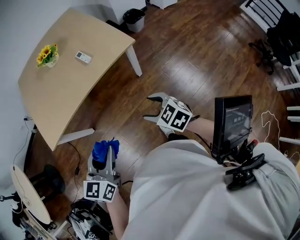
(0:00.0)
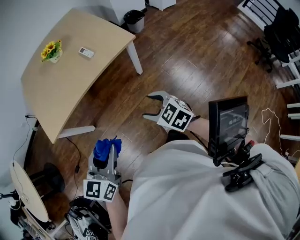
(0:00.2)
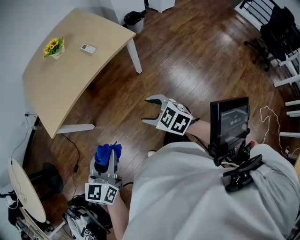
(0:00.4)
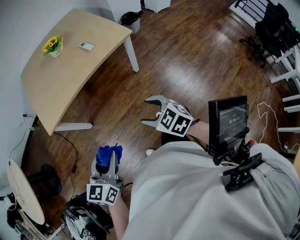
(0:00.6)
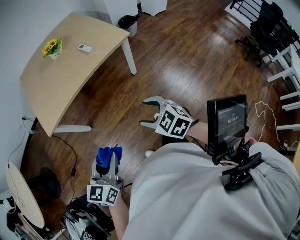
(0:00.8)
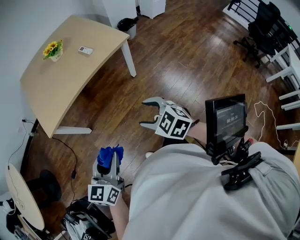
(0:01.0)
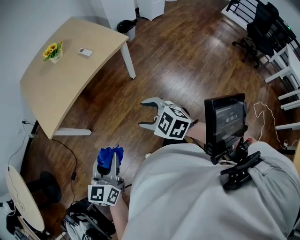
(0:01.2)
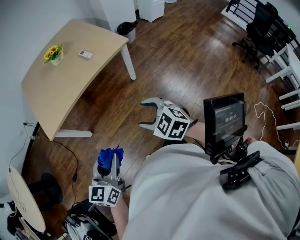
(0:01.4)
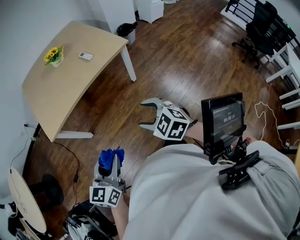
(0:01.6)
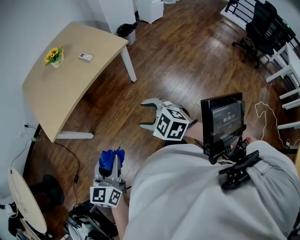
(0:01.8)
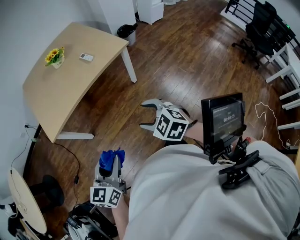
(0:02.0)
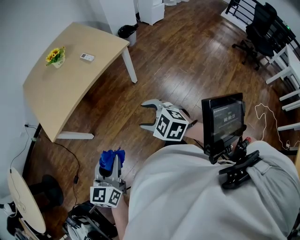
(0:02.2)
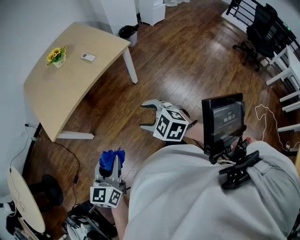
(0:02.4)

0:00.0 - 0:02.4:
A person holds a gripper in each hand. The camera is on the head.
0:00.0 - 0:01.2: The left gripper travels backward and to the left by roughly 20 cm, while the right gripper travels backward, to the left and upward by about 20 cm.
0:01.2 - 0:02.4: Both grippers stay about where they are.

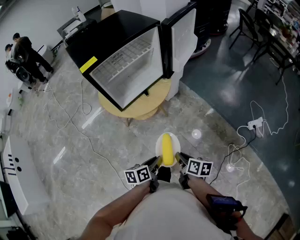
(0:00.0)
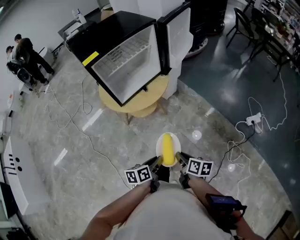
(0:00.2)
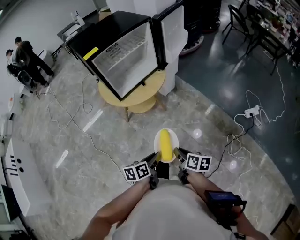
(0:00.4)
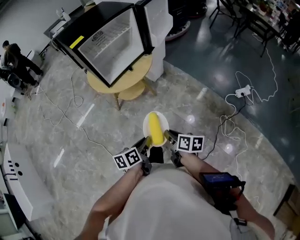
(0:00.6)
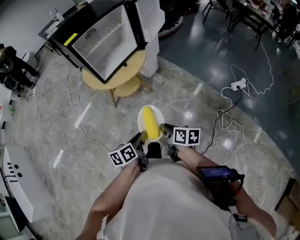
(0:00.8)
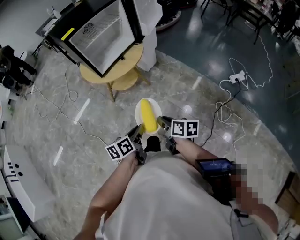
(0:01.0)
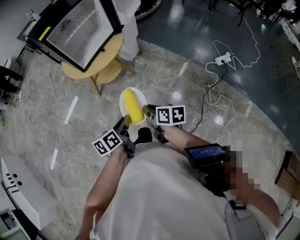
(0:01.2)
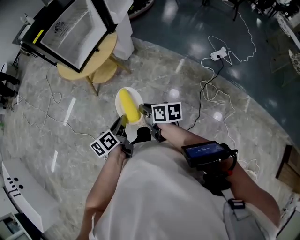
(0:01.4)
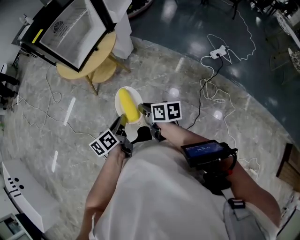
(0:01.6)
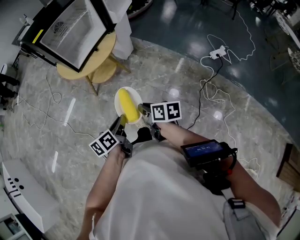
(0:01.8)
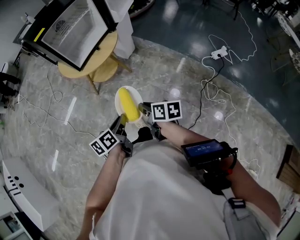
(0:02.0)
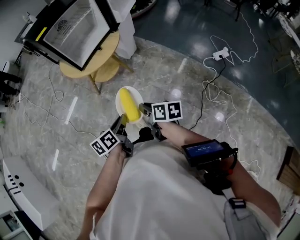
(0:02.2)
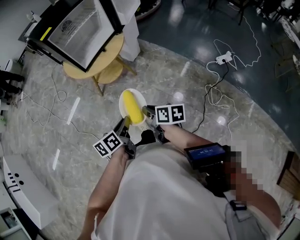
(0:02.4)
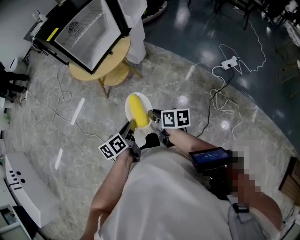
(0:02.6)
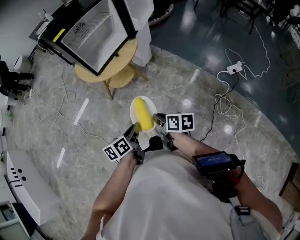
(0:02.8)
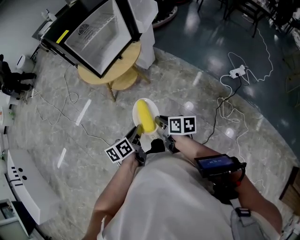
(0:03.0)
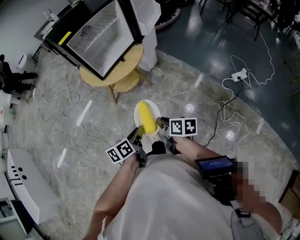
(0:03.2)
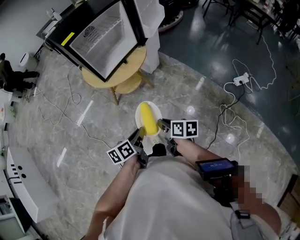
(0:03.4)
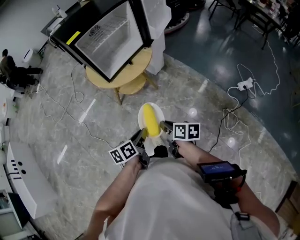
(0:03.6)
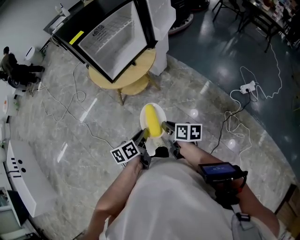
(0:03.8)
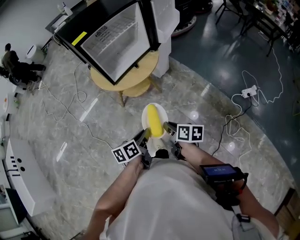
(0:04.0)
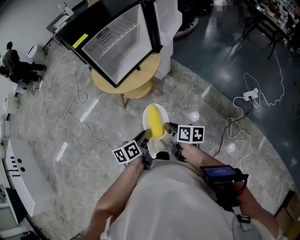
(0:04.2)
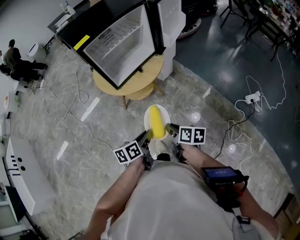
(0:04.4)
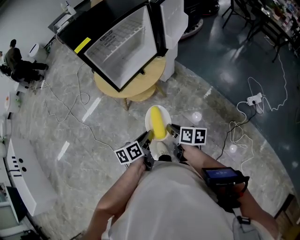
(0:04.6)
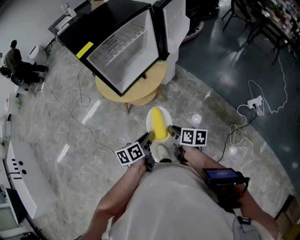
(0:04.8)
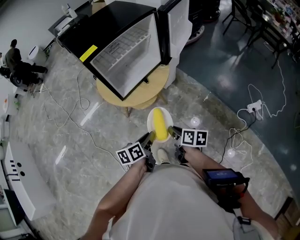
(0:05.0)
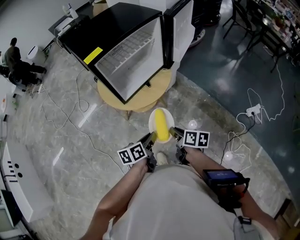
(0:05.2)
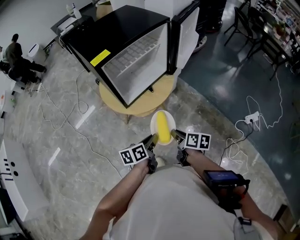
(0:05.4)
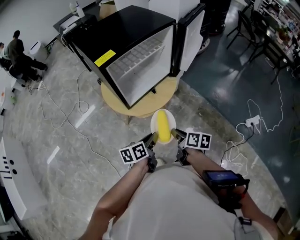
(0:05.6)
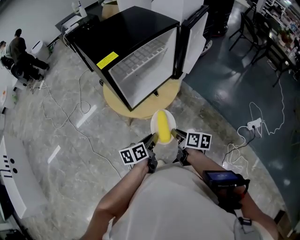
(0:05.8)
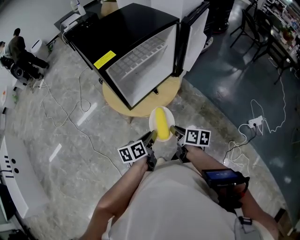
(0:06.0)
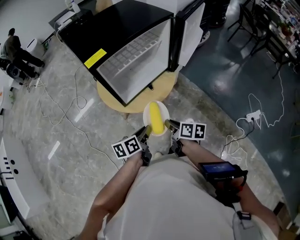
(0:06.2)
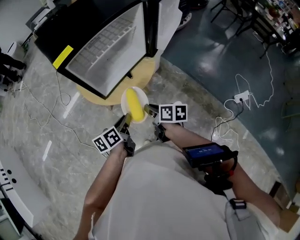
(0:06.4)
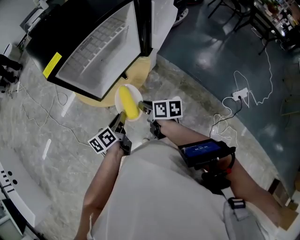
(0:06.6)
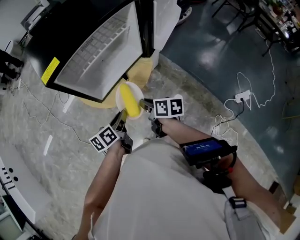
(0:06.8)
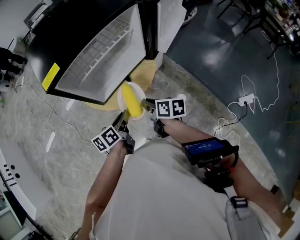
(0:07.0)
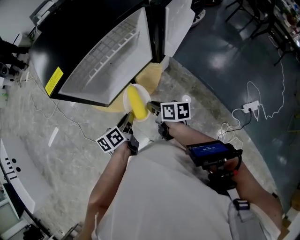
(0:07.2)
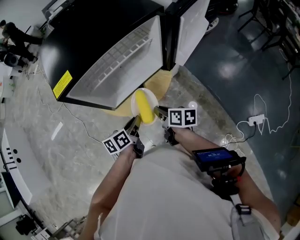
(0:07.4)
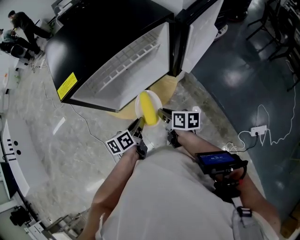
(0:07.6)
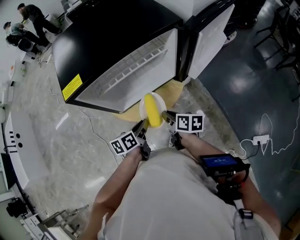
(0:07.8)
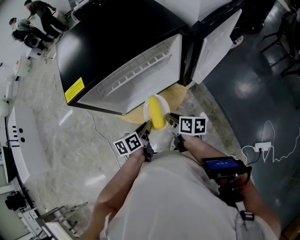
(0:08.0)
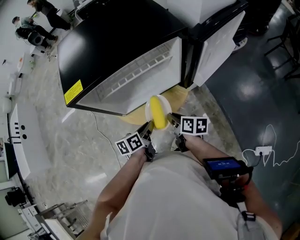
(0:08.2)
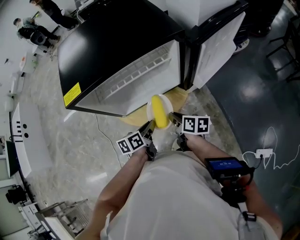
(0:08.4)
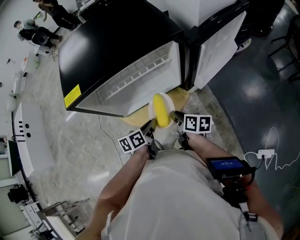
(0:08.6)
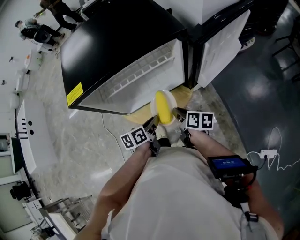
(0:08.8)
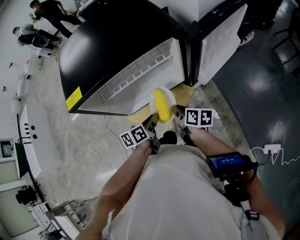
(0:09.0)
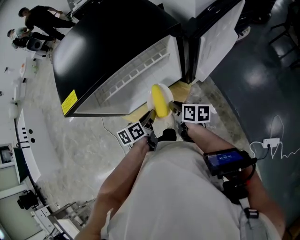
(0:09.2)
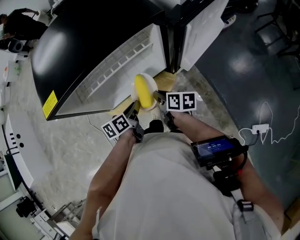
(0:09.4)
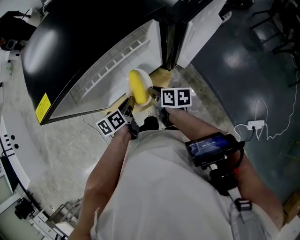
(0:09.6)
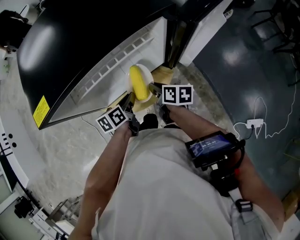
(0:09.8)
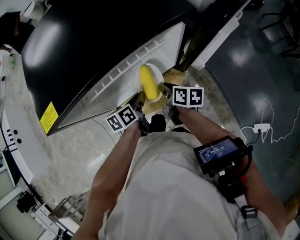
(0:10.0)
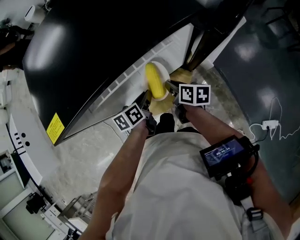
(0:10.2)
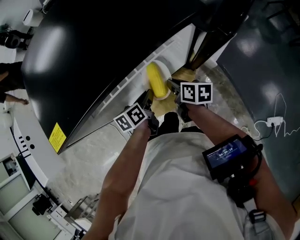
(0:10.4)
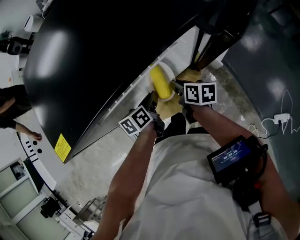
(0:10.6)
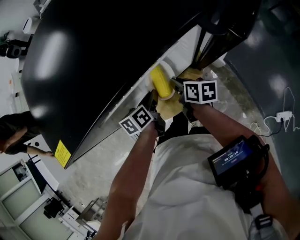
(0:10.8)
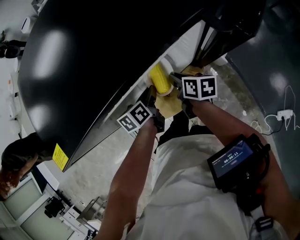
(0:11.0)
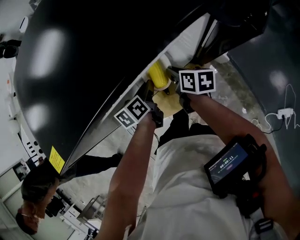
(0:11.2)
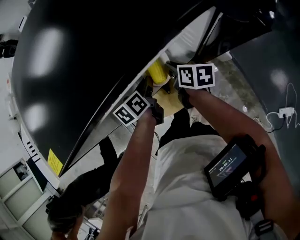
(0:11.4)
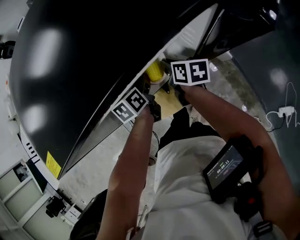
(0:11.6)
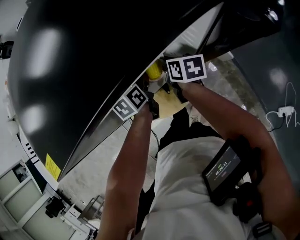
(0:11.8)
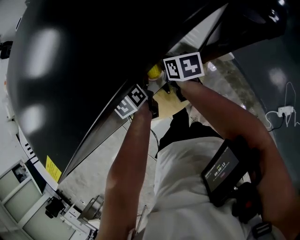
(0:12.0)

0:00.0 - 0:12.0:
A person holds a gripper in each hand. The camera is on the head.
0:00.0 - 0:01.6: The grippers both shift backward by approximately 15 cm.
0:01.6 - 0:03.0: The grippers make only small movements.
0:03.0 - 0:04.4: Both grippers travel together forward, some 15 cm.
0:04.4 - 0:06.0: Both grippers travel together forward, some 15 cm.
0:06.0 - 0:07.6: Both grippers travel together forward, about 15 cm.
0:07.6 - 0:09.0: The two grippers go roughly 5 cm forward.
0:09.0 - 0:10.4: The grippers both shift forward by approximately 10 cm.
0:10.4 - 0:12.0: Both grippers move forward, roughly 10 cm.

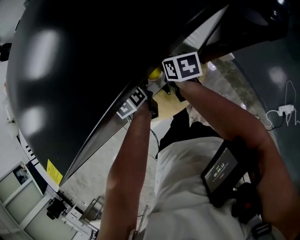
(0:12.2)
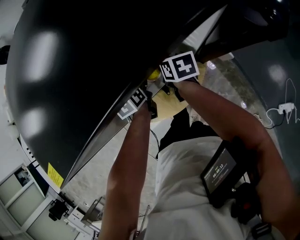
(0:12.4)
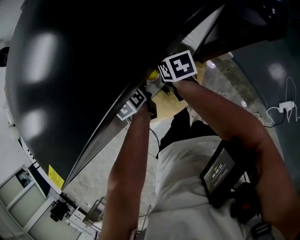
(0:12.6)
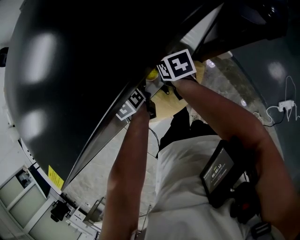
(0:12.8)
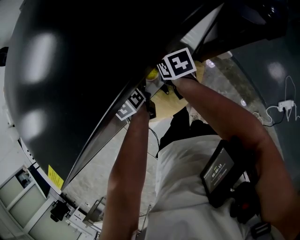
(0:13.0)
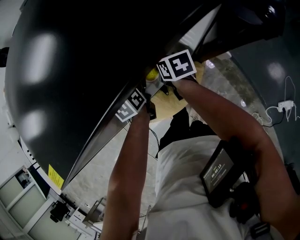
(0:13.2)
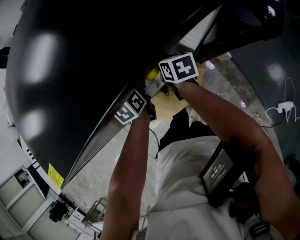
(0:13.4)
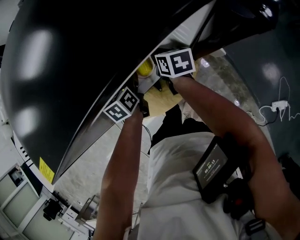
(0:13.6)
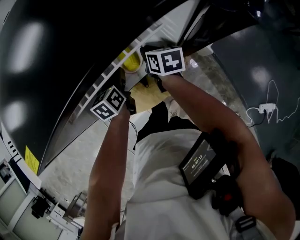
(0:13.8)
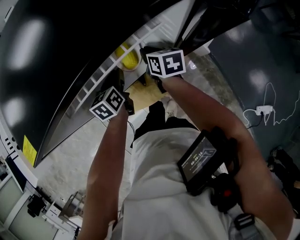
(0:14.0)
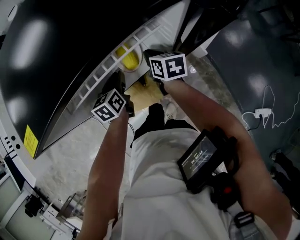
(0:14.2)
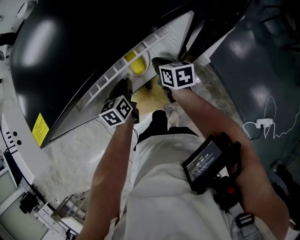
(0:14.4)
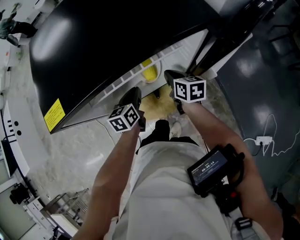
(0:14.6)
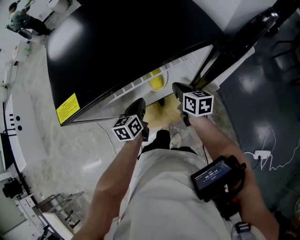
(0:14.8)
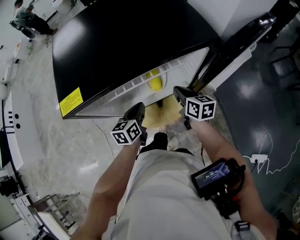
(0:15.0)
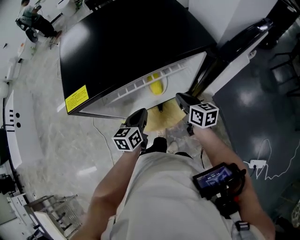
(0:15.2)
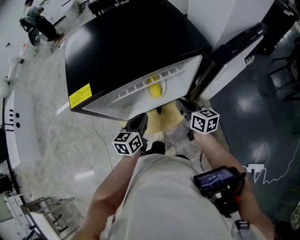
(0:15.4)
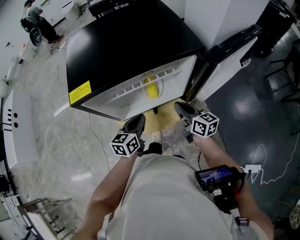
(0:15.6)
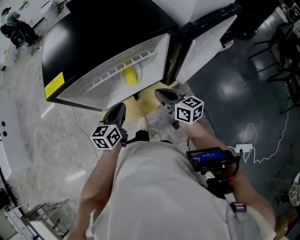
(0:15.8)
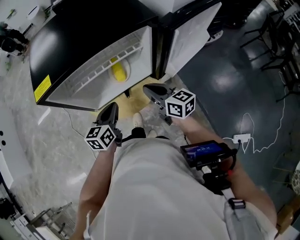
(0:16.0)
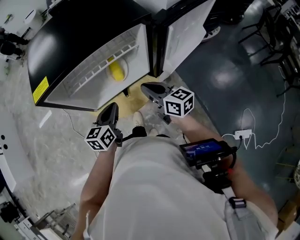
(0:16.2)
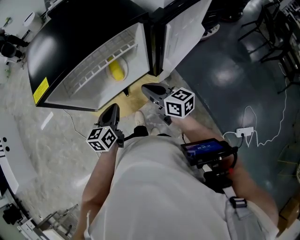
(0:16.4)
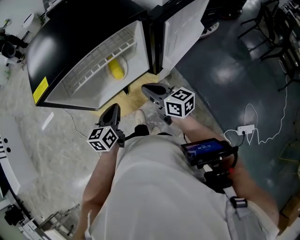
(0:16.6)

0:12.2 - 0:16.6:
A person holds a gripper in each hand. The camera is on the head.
0:12.2 - 0:13.6: There are only small adjustments of the grippers.
0:13.6 - 0:15.2: The right gripper shifts roughly 15 cm upward and backward, and rotates about 20 degrees, while the left gripper goes approximately 15 cm backward and upward.
0:15.2 - 0:16.6: The left gripper shifts some 5 cm backward; the right gripper is displaced backward and upward by roughly 10 cm.

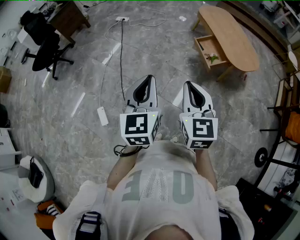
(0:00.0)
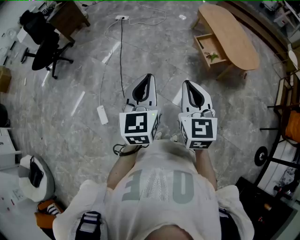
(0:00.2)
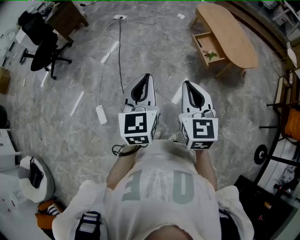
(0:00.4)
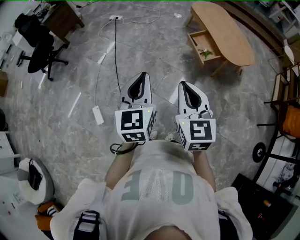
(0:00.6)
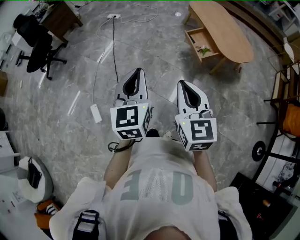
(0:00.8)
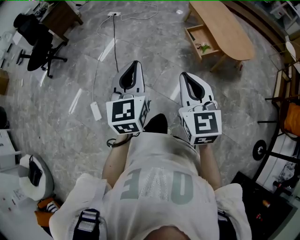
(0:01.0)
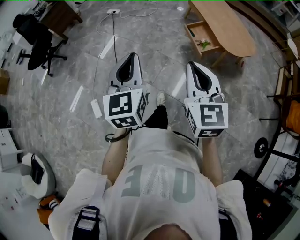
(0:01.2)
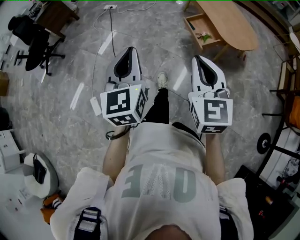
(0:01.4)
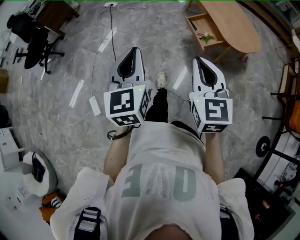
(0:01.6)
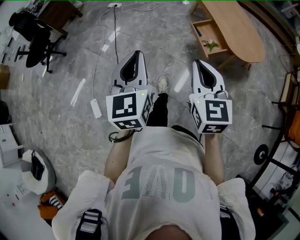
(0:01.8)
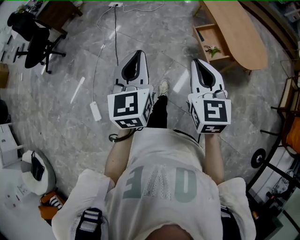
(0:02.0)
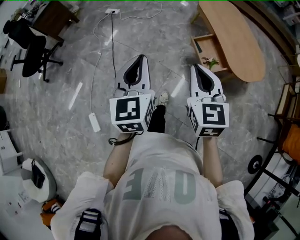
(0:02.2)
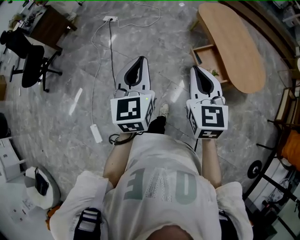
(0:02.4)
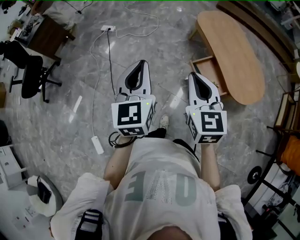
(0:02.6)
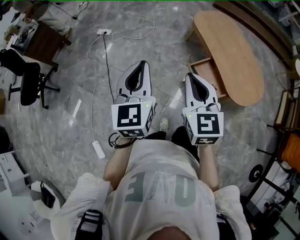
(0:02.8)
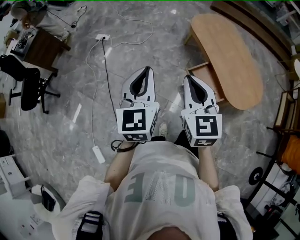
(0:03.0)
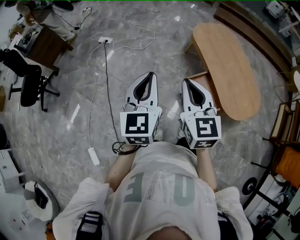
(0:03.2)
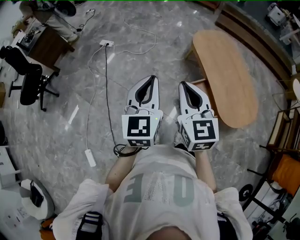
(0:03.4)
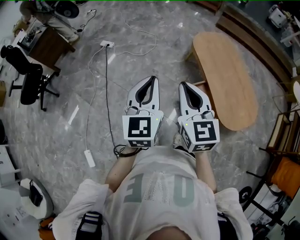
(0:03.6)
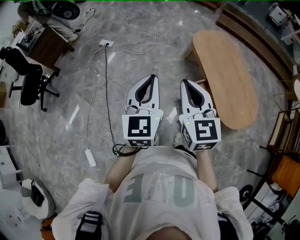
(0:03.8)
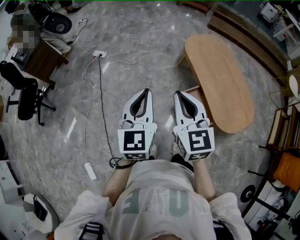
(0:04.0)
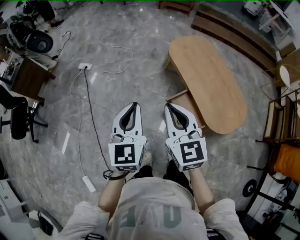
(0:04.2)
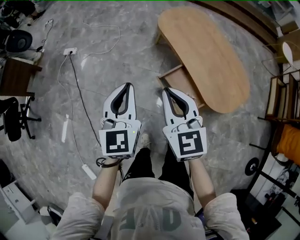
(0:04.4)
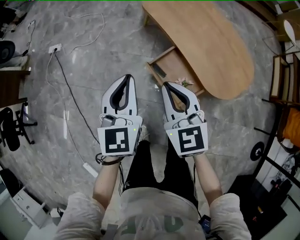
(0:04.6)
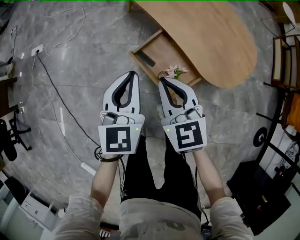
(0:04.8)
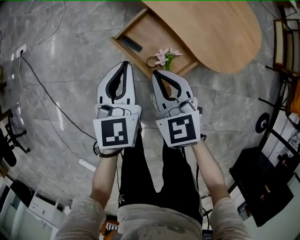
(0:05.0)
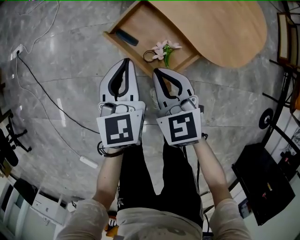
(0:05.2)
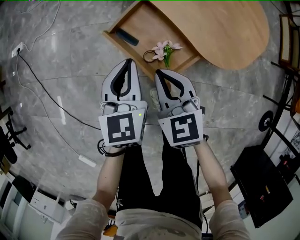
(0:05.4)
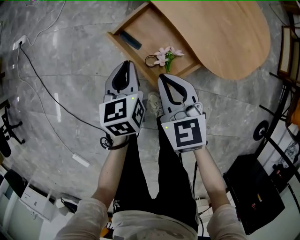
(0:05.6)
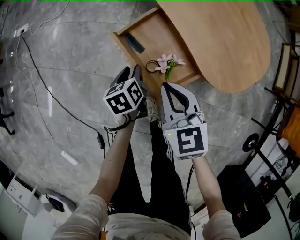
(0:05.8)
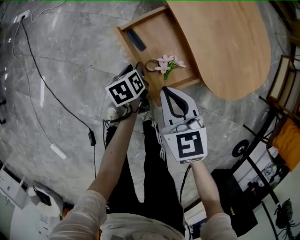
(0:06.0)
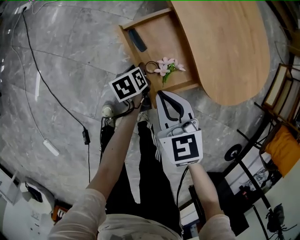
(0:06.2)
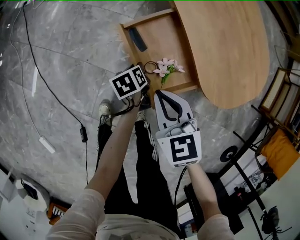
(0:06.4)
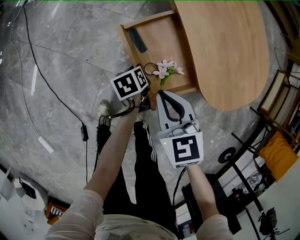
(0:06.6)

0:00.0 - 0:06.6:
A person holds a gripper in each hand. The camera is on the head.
0:00.0 - 0:01.6: Both grippers move to the right and forward, roughly 10 cm.
0:01.6 - 0:03.2: The pair of grippers is taken forward, about 40 cm.
0:03.2 - 0:05.0: The two grippers go about 40 cm downward and to the right. The left gripper changes its angle by roughly 30 degrees, while the right gripper rotates roughly 20 degrees.
0:05.0 - 0:06.6: The left gripper shifts approximately 30 cm downward, and rolls counterclockwise, seen from behind, by about 60 degrees, while the right gripper is displaced downward by about 5 cm.
